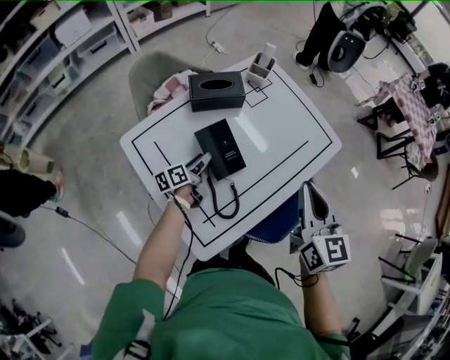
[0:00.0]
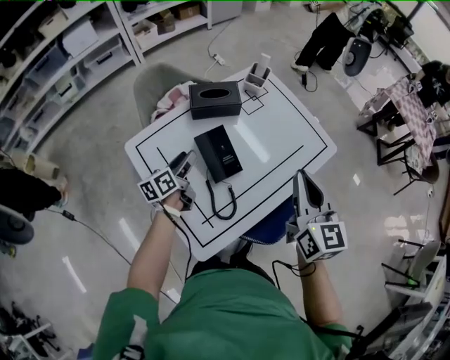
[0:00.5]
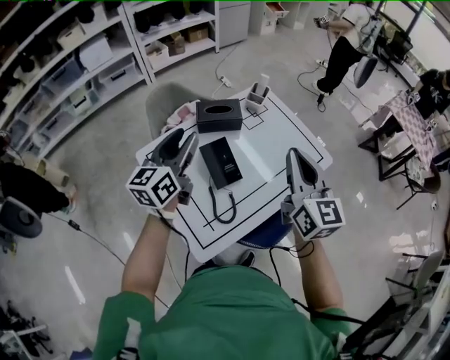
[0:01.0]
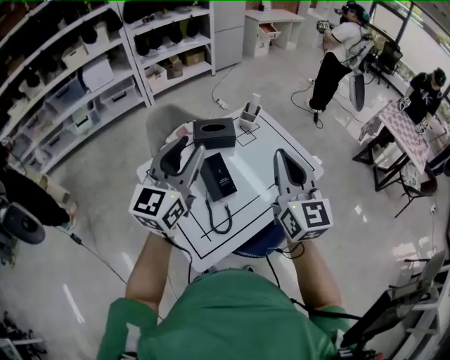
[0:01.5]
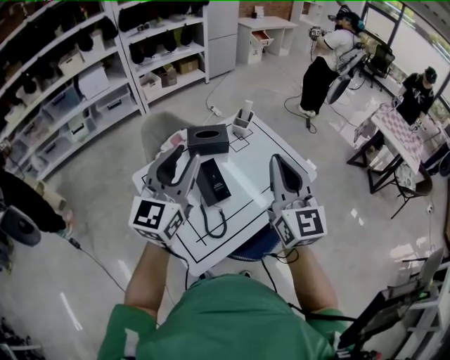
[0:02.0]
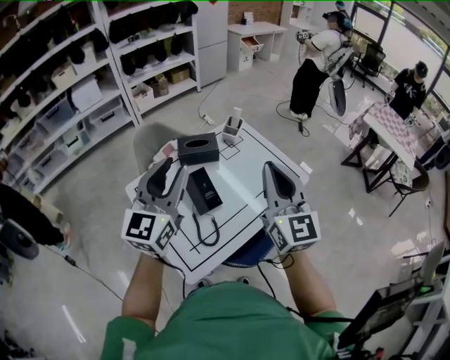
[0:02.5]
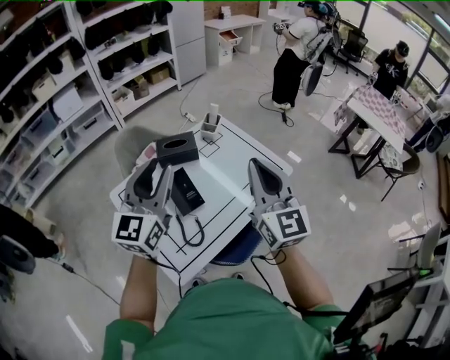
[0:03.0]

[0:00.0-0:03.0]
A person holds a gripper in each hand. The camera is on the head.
0.0 to 1.5 s: The right gripper moves upward, some 15 cm, and rotates about 20 degrees. The left gripper is displaced upward by some 50 cm, and rolls clockwise, seen from behind, by approximately 60 degrees.
1.5 to 3.0 s: Both grippers move to the right, about 5 cm.

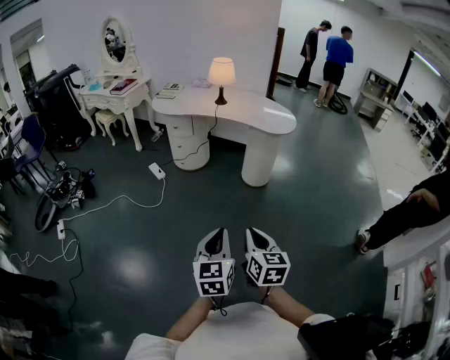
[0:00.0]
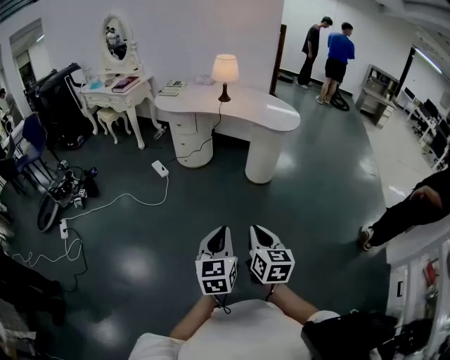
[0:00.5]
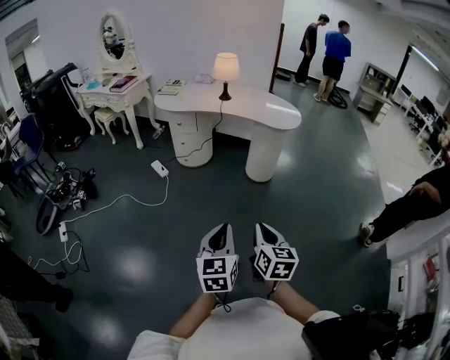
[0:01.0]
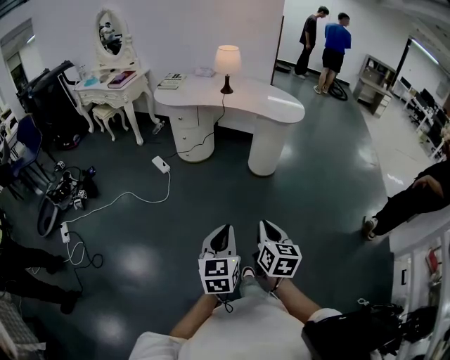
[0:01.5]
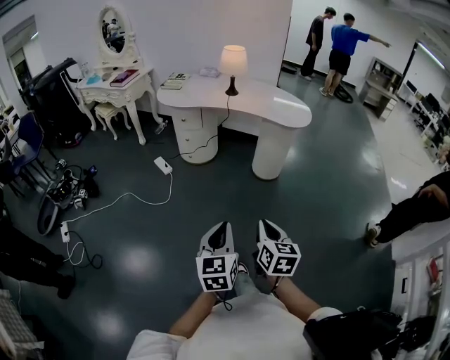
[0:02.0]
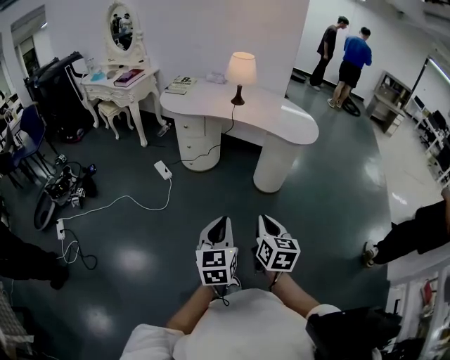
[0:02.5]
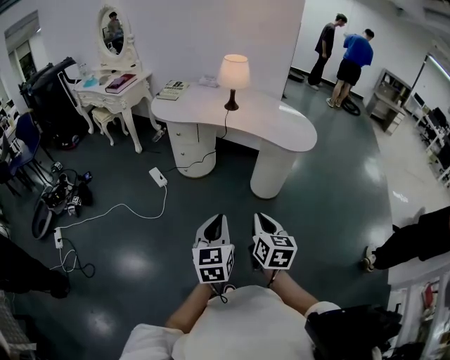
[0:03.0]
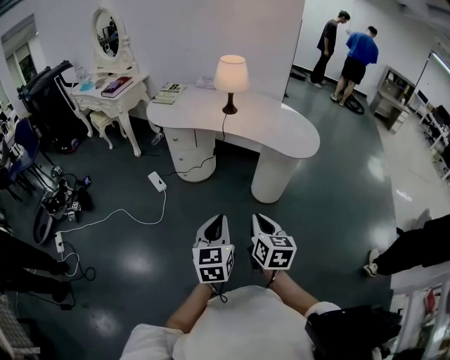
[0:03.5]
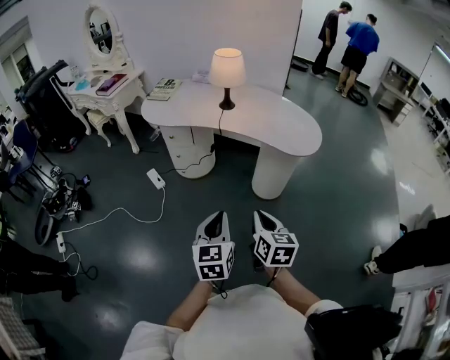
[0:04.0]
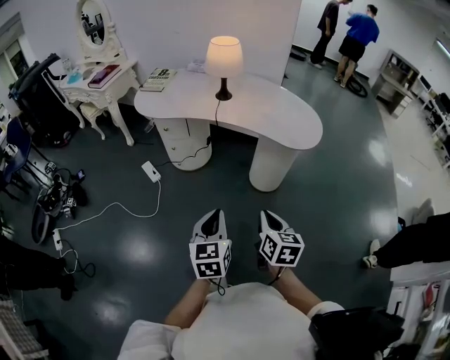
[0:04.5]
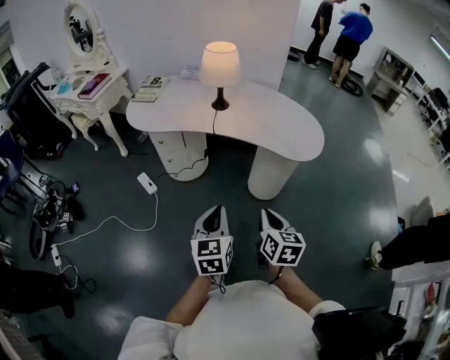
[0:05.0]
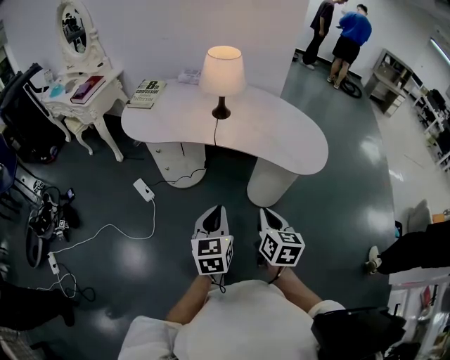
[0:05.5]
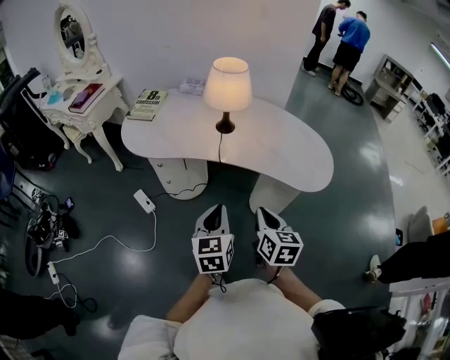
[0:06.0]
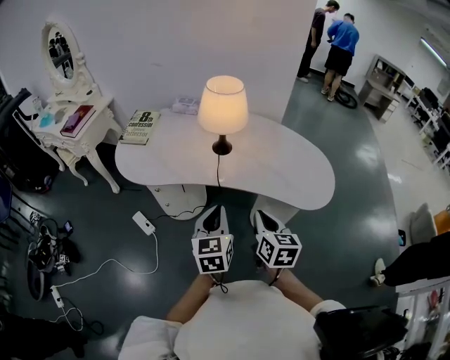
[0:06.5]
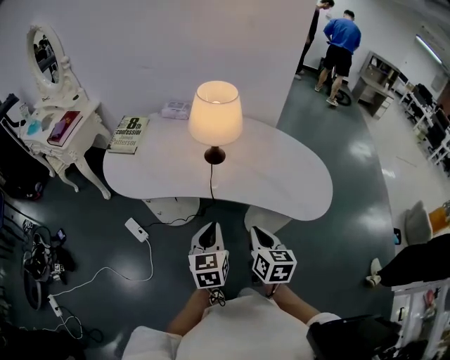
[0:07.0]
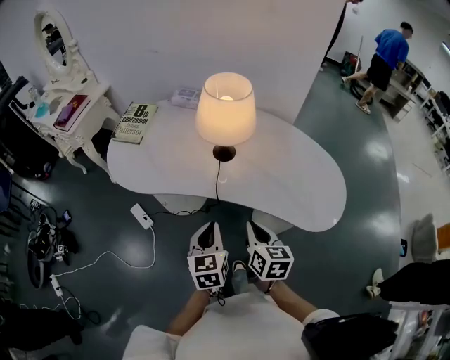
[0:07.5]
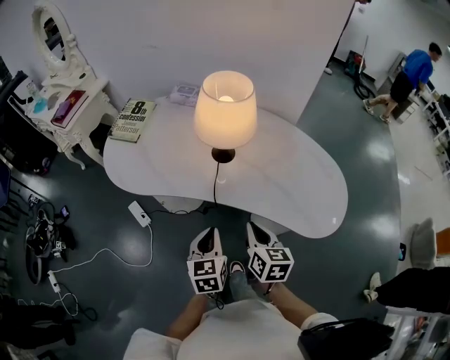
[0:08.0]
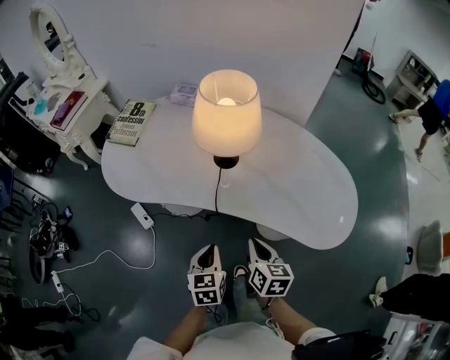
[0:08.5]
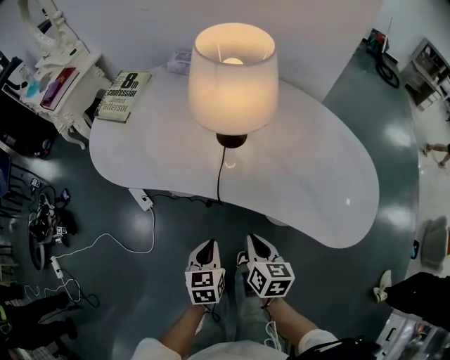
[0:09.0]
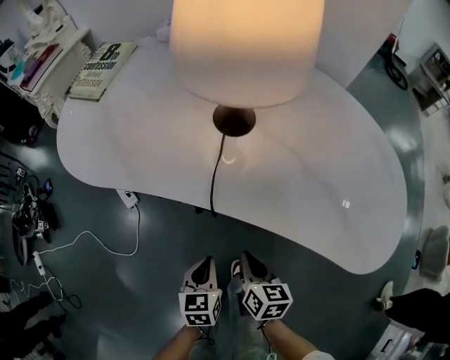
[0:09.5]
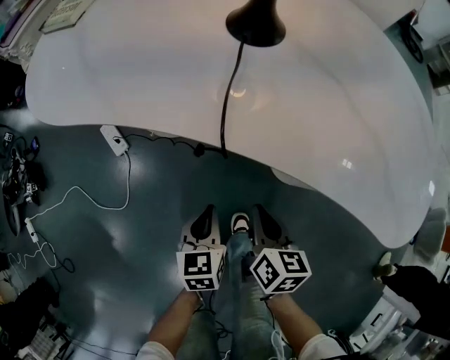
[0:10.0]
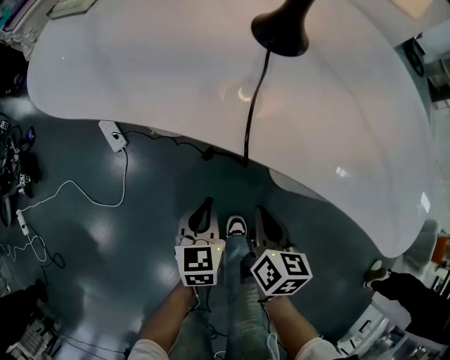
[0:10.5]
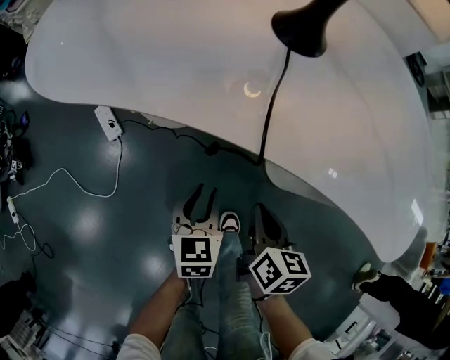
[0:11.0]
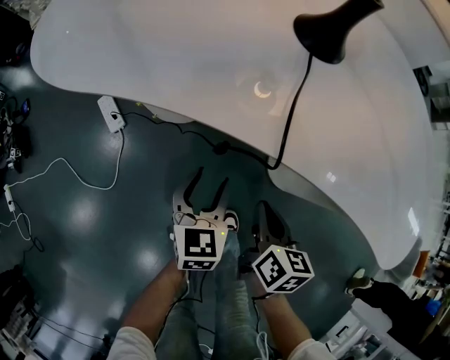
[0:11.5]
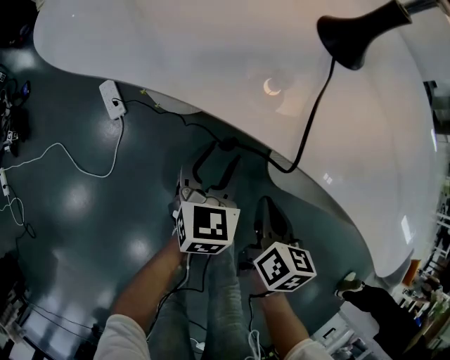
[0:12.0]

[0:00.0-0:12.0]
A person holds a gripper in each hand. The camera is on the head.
0.0 to 2.0 s: The left gripper is displaced to the left and forward by about 10 cm. The right gripper heads forward and to the left, covering some 10 cm.
2.0 to 4.0 s: The grippers both shift forward by approximately 30 cm.
4.0 to 6.0 s: Both grippers travel together forward, approximately 25 cm.
6.0 to 8.0 s: The left gripper goes roughly 20 cm forward and downward. Meanwhile the right gripper is displaced forward by some 20 cm.
8.0 to 10.0 s: Both grippers move downward, some 35 cm.
10.0 to 12.0 s: The left gripper is displaced forward by approximately 10 cm, and opens up.

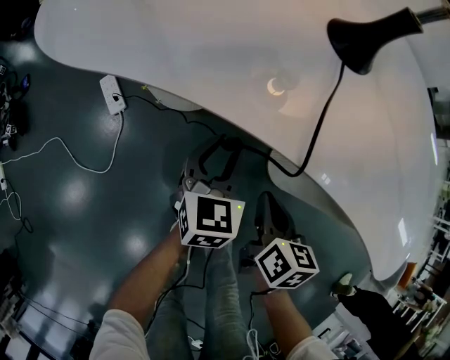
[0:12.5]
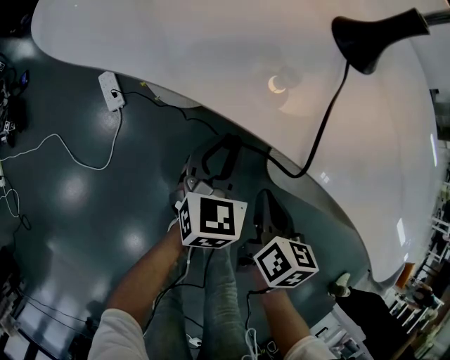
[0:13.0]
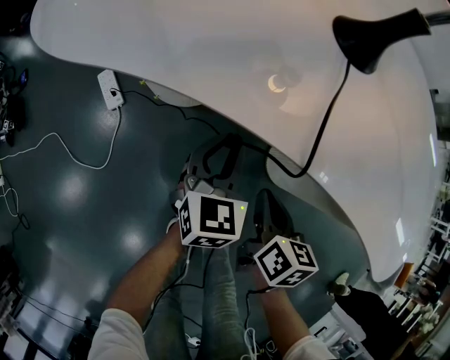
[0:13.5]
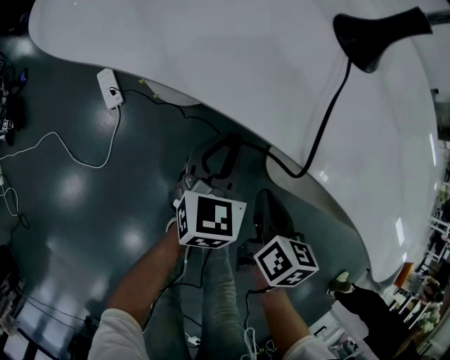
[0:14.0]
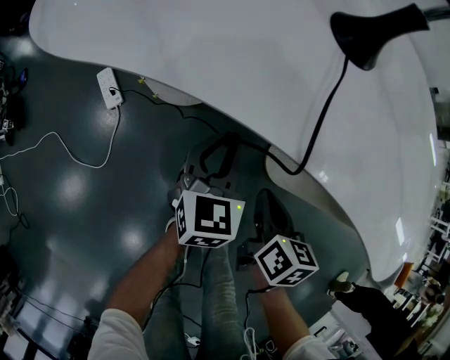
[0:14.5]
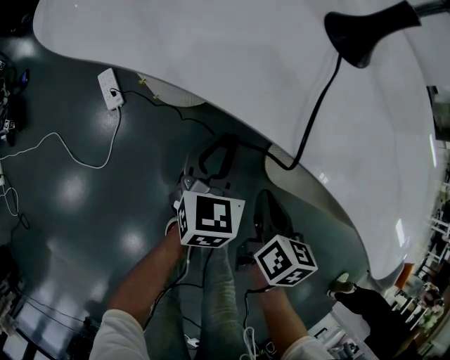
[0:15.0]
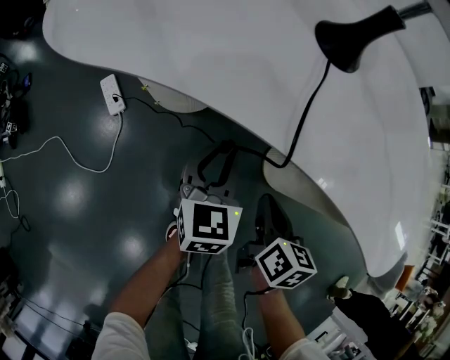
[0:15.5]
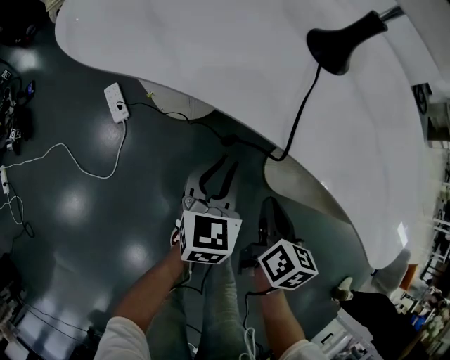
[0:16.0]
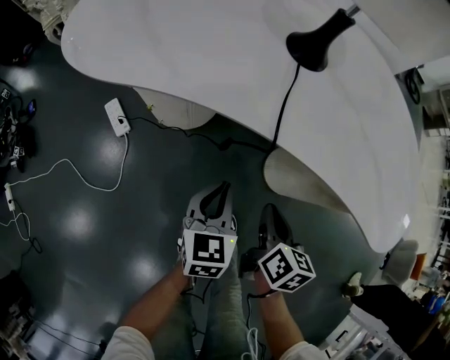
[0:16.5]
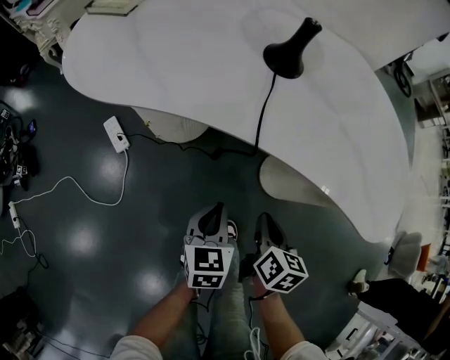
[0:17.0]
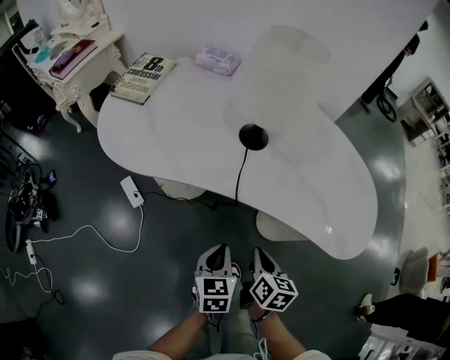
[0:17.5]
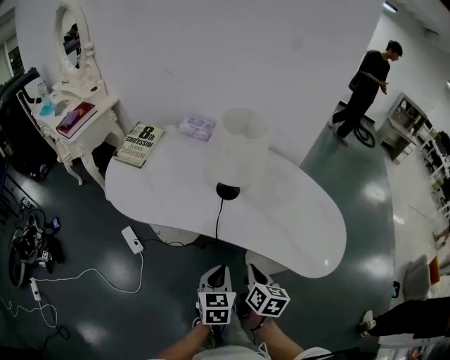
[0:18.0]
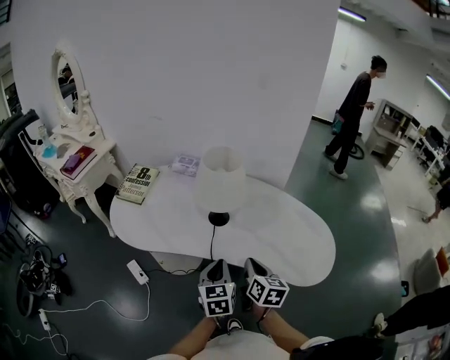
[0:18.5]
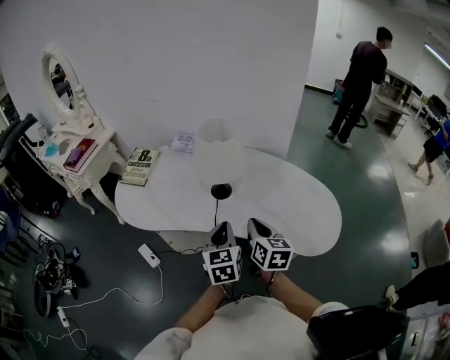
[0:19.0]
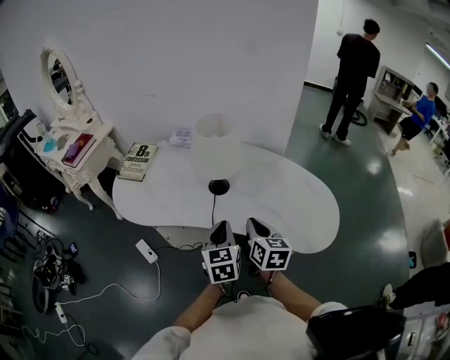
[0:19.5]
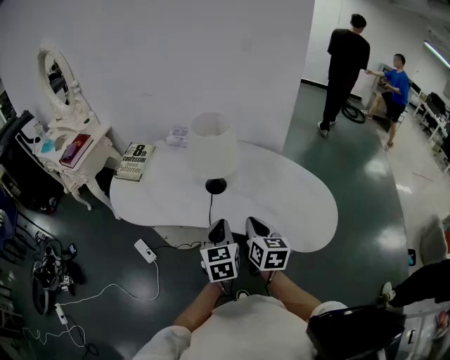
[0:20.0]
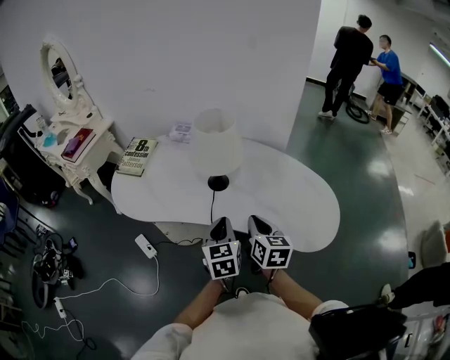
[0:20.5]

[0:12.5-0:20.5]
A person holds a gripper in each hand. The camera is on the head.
12.5 to 14.5 s: Neither gripper changes place.
14.5 to 16.5 s: The left gripper moves backward, about 10 cm; the right gripper moves upward and backward, roughly 10 cm.
16.5 to 18.5 s: Both grippers travel together upward, approximately 30 cm.
18.5 to 20.5 s: There are only small adjustments of the grippers.

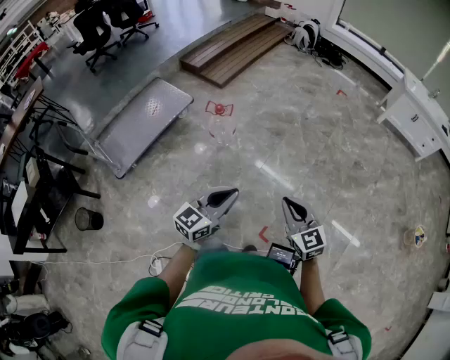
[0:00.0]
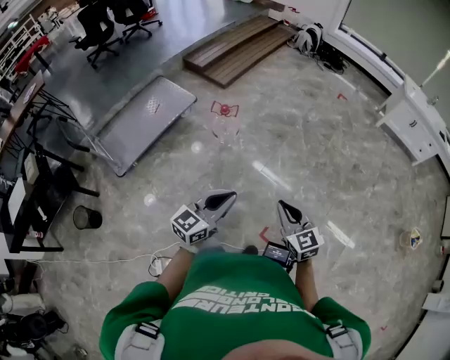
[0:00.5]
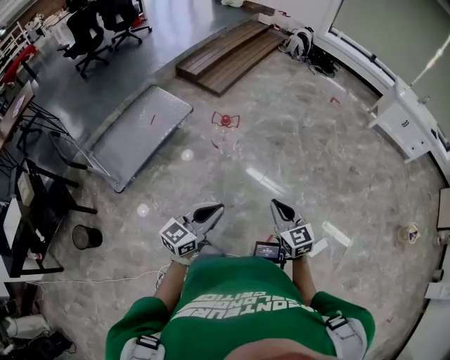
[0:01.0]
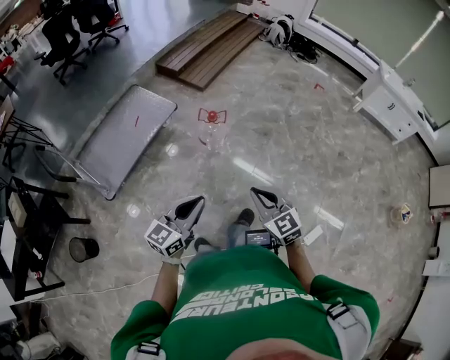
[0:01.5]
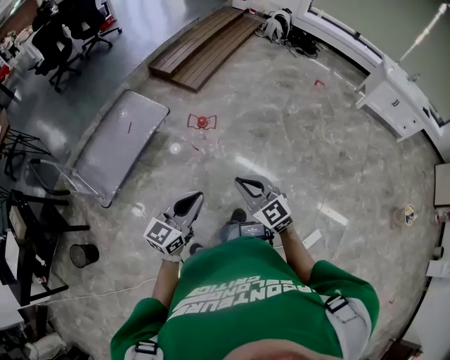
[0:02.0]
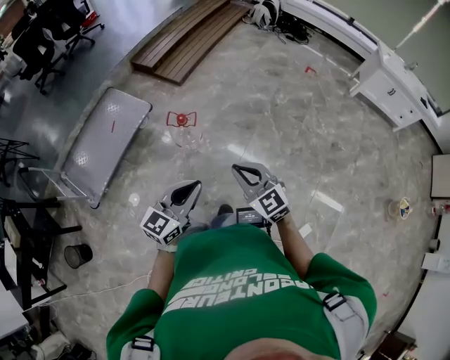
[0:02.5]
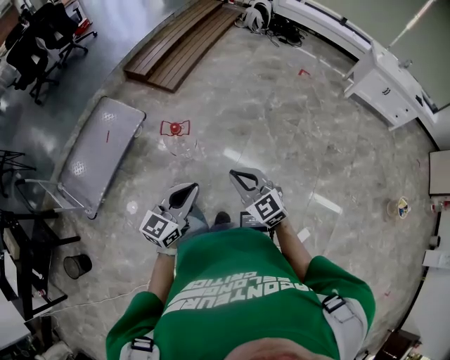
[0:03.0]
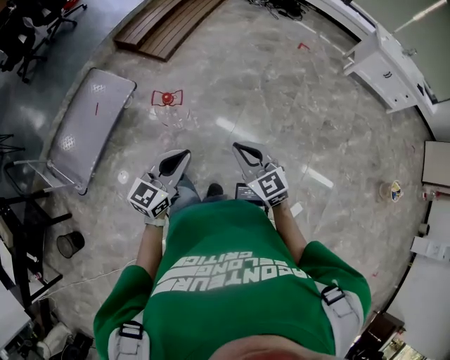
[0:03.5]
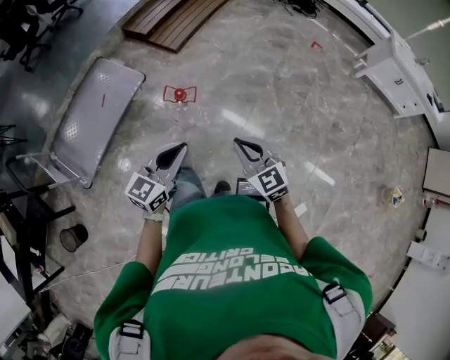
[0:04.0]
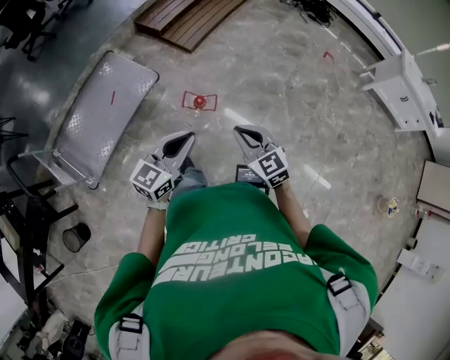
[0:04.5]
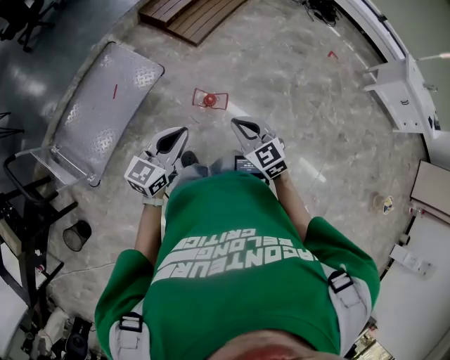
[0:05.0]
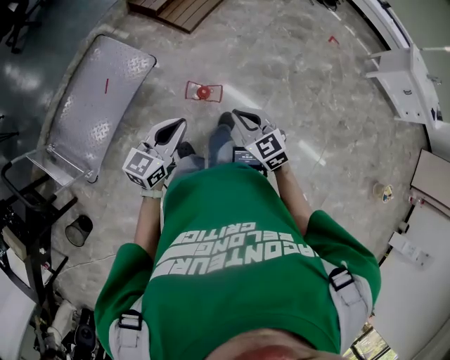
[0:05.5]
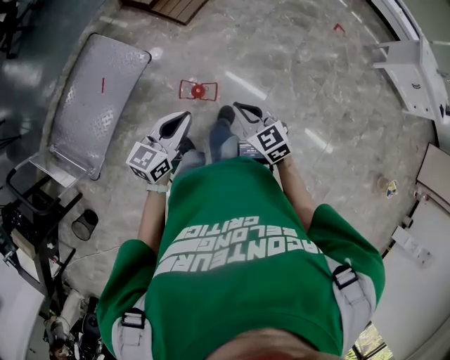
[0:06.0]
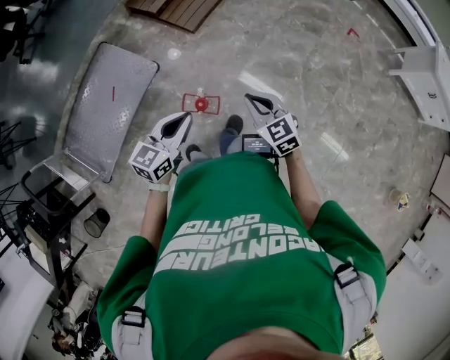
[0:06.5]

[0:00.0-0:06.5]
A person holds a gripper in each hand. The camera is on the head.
0.0 to 2.0 s: The grippers both shift to the left and forward by some 25 cm.
2.0 to 4.5 s: The grippers both shift forward by roughly 30 cm.
4.5 to 6.5 s: The two grippers go some 25 cm forward.
